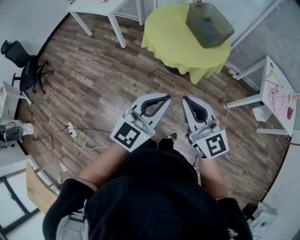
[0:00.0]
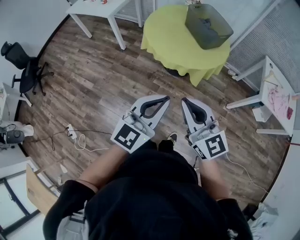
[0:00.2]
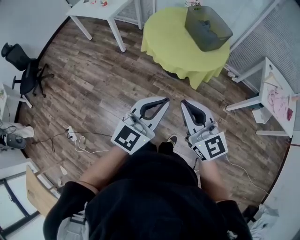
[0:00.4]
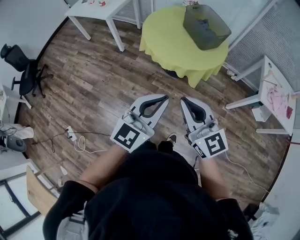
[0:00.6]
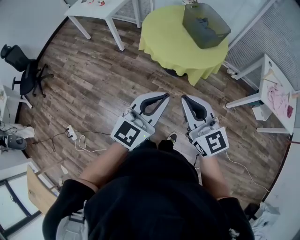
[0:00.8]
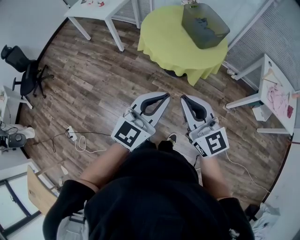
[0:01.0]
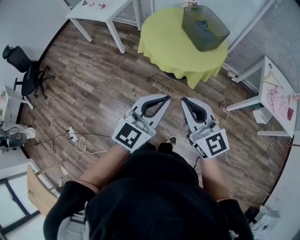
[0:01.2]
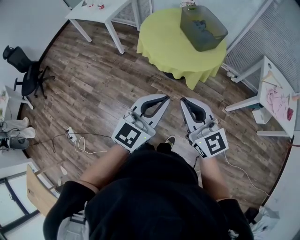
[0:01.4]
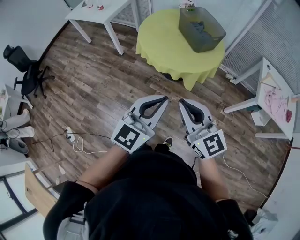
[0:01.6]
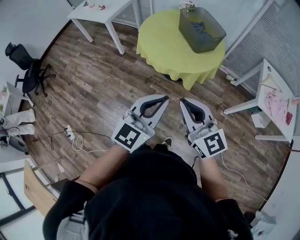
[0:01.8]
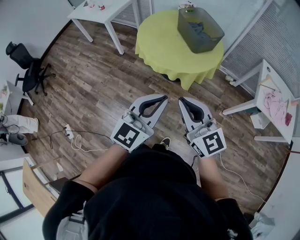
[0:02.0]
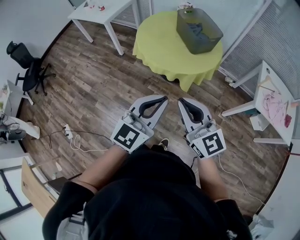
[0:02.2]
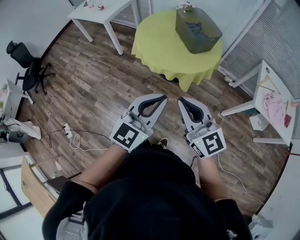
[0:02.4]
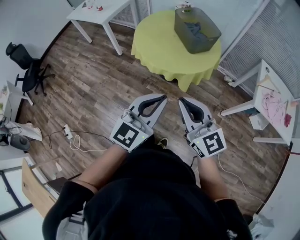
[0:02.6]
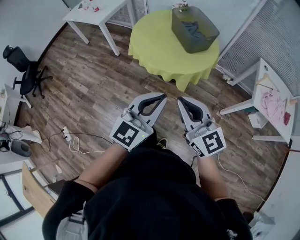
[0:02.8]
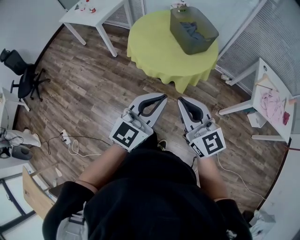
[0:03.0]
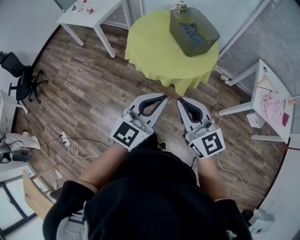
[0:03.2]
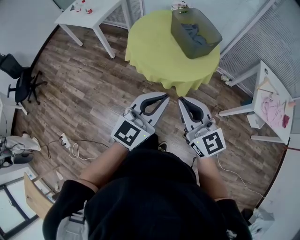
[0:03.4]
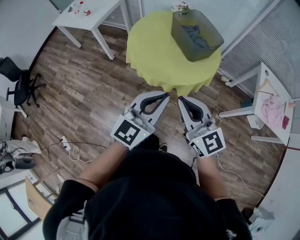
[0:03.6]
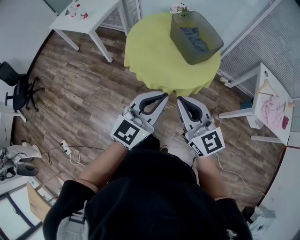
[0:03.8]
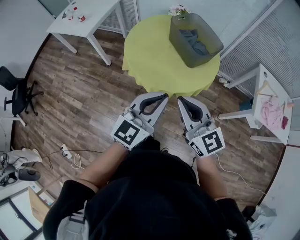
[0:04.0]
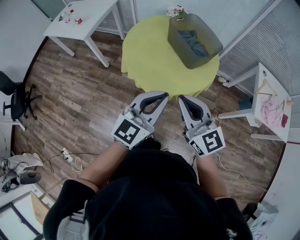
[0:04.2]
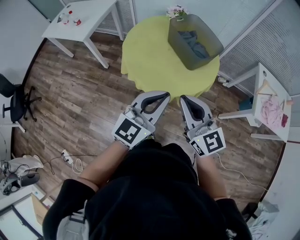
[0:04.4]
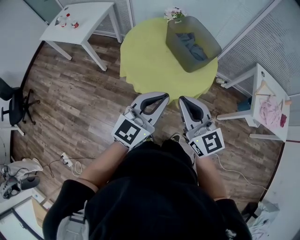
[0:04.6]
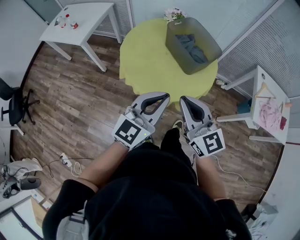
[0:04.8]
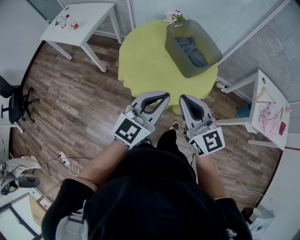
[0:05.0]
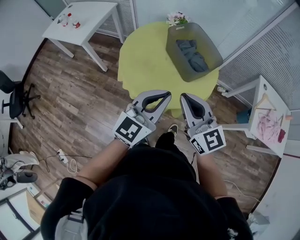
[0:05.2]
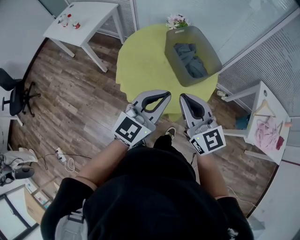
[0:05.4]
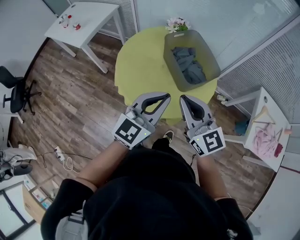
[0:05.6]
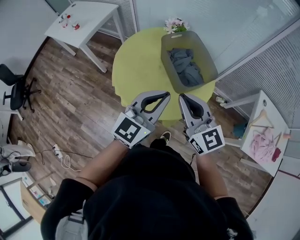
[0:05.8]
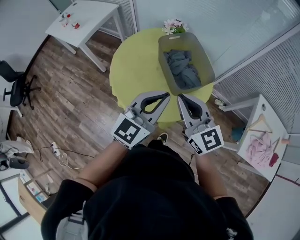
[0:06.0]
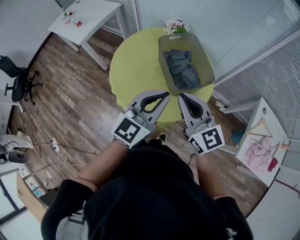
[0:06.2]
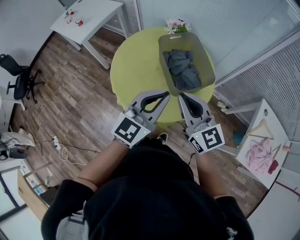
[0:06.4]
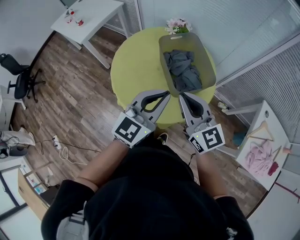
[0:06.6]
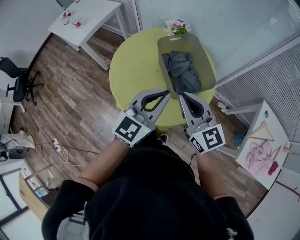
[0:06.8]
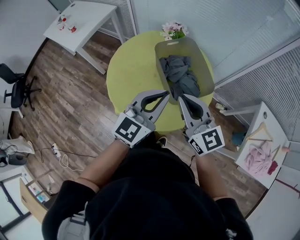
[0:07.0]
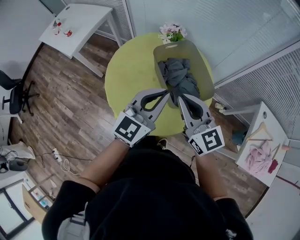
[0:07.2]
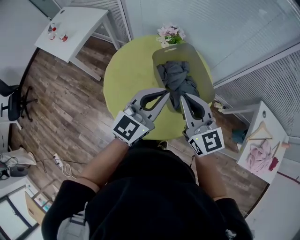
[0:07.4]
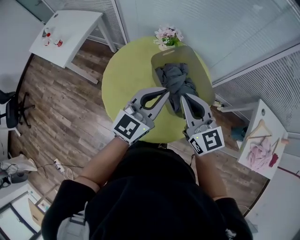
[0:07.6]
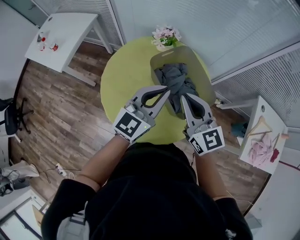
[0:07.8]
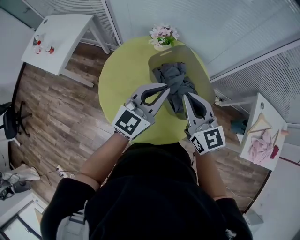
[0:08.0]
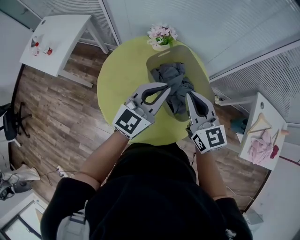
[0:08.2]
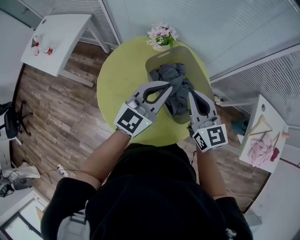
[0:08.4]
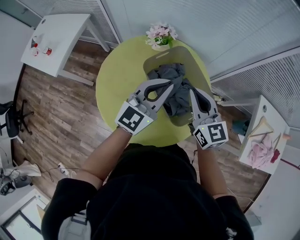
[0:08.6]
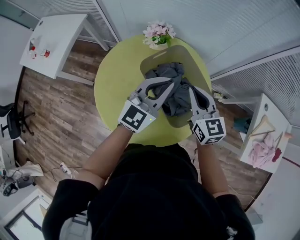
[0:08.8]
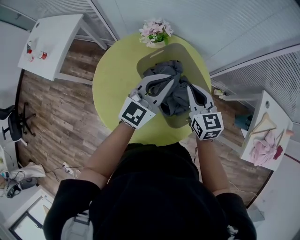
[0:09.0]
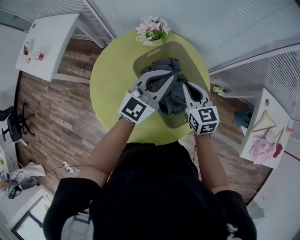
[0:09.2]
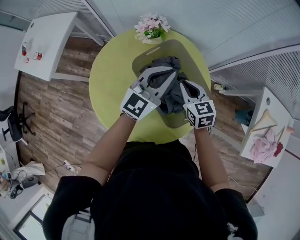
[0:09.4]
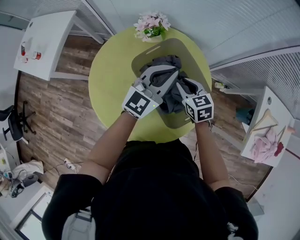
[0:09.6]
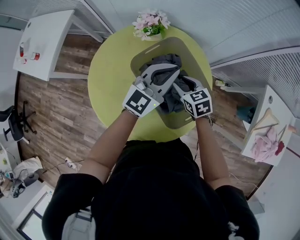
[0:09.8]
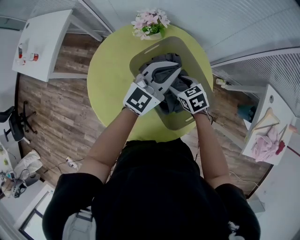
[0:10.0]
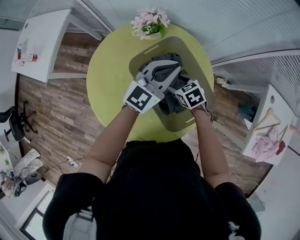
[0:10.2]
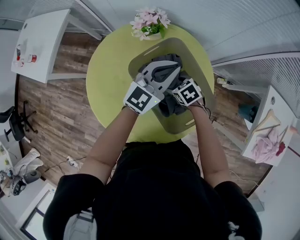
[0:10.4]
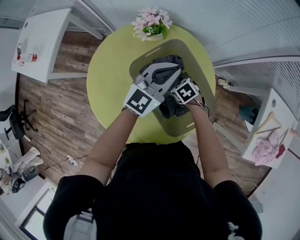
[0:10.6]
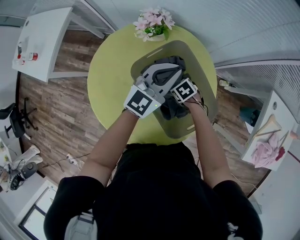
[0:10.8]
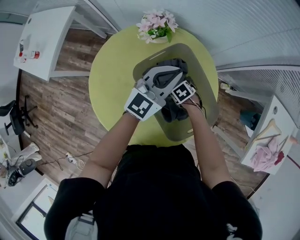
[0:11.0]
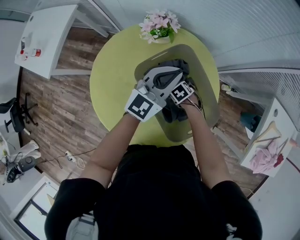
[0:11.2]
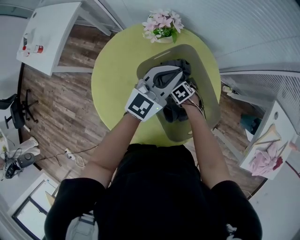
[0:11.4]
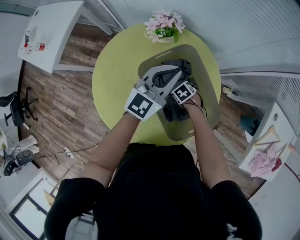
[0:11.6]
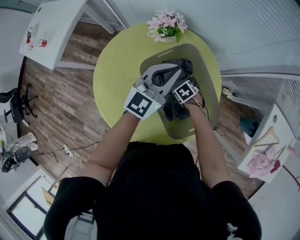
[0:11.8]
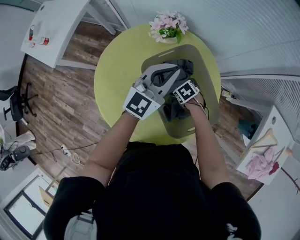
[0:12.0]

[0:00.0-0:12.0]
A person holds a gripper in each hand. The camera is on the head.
0:00.0 to 0:01.6: Both grippers travel together to the right, approximately 5 cm.
0:01.6 to 0:03.0: The grippers both shift to the right and forward by about 10 cm.
0:03.0 to 0:04.4: The two grippers go roughly 20 cm forward.
0:04.4 to 0:06.0: The two grippers go approximately 25 cm forward and to the right.
0:06.0 to 0:07.6: The grippers both shift forward by about 15 cm.
0:07.6 to 0:09.0: The left gripper heads forward and downward, covering roughly 15 cm; the right gripper heads forward, downward and to the right, covering some 20 cm, and turns by roughly 20 degrees.
0:09.0 to 0:10.4: The left gripper travels forward and downward by approximately 10 cm. The right gripper heads downward, covering some 25 cm, angles its fingers downward, by some 40 degrees, and opens its fingers.
0:10.4 to 0:12.0: The right gripper travels downward by roughly 5 cm. Meanwhile the left gripper ends up approximately 5 cm from where it was.

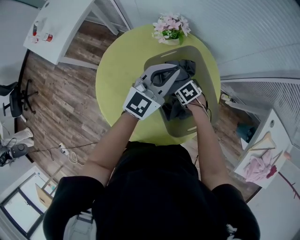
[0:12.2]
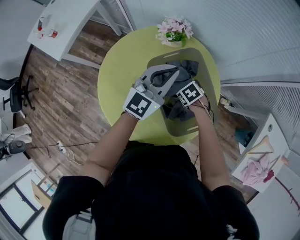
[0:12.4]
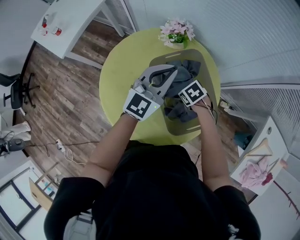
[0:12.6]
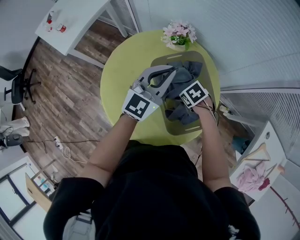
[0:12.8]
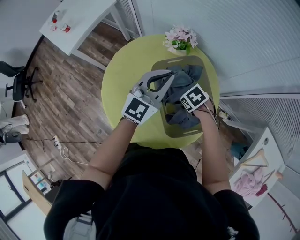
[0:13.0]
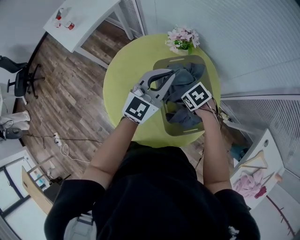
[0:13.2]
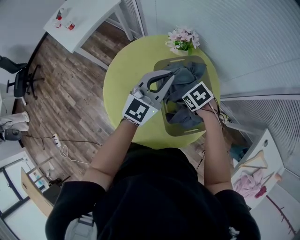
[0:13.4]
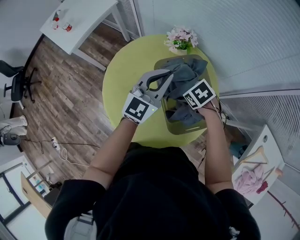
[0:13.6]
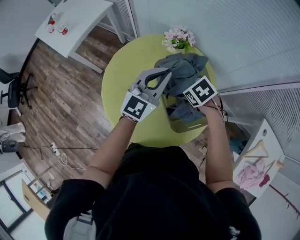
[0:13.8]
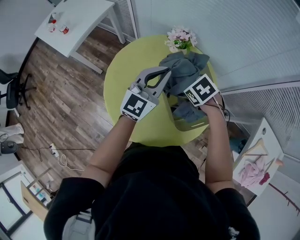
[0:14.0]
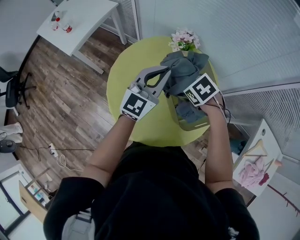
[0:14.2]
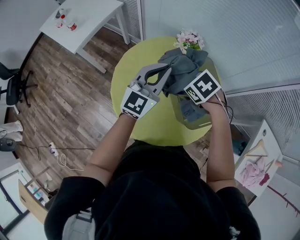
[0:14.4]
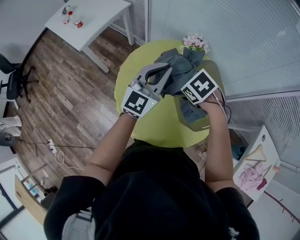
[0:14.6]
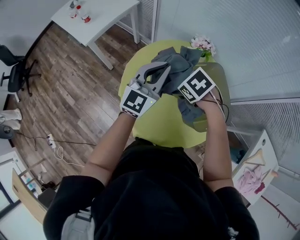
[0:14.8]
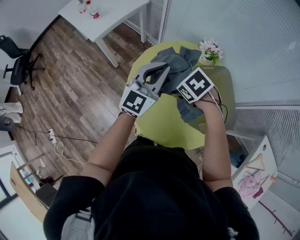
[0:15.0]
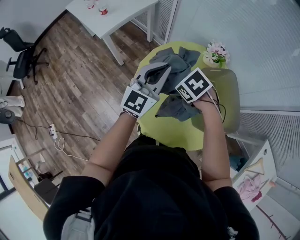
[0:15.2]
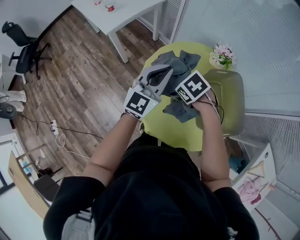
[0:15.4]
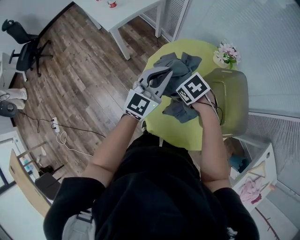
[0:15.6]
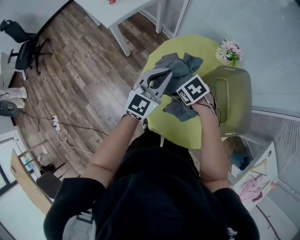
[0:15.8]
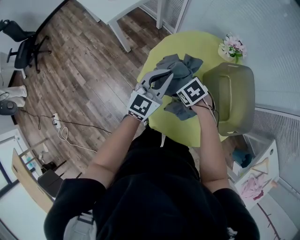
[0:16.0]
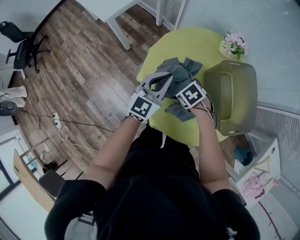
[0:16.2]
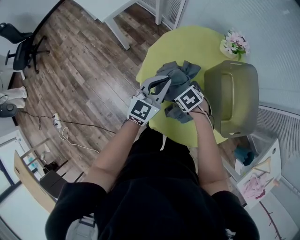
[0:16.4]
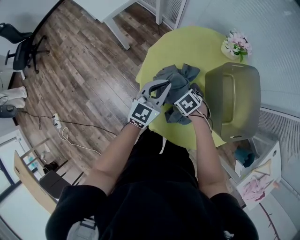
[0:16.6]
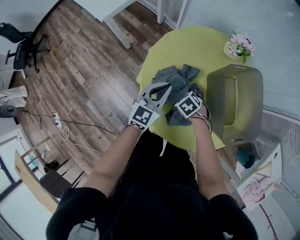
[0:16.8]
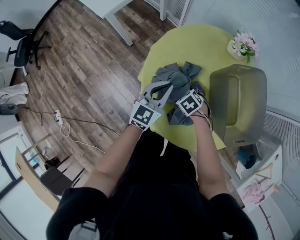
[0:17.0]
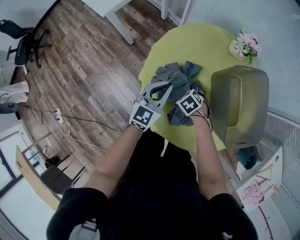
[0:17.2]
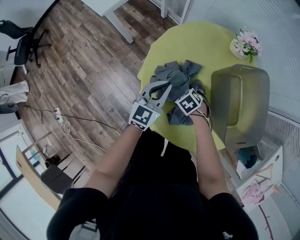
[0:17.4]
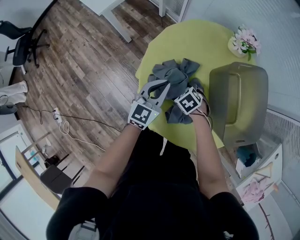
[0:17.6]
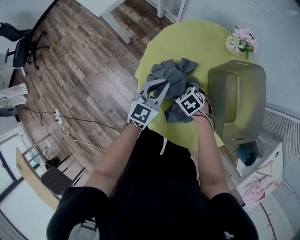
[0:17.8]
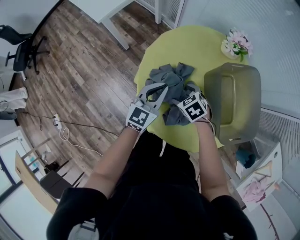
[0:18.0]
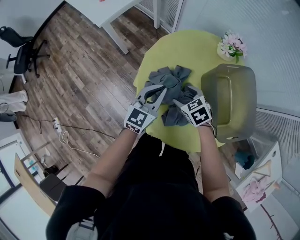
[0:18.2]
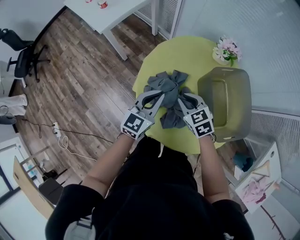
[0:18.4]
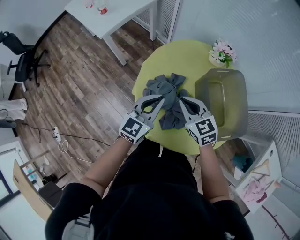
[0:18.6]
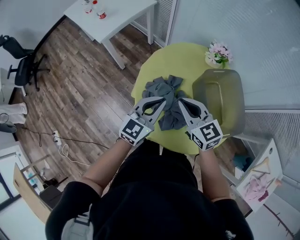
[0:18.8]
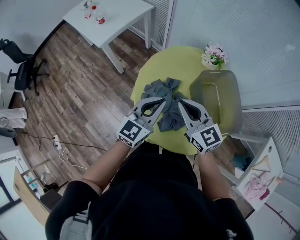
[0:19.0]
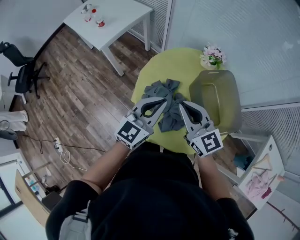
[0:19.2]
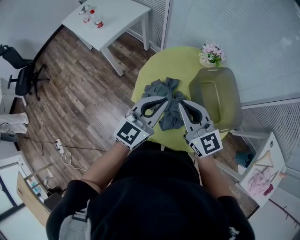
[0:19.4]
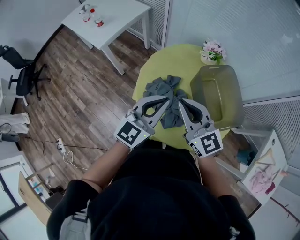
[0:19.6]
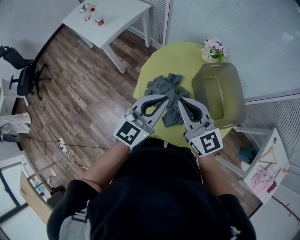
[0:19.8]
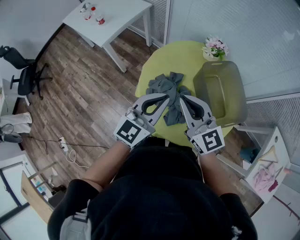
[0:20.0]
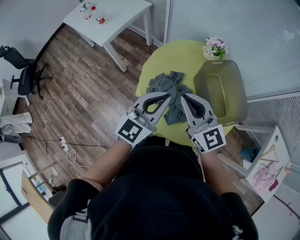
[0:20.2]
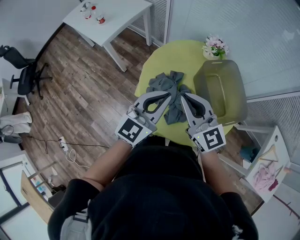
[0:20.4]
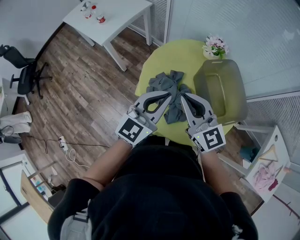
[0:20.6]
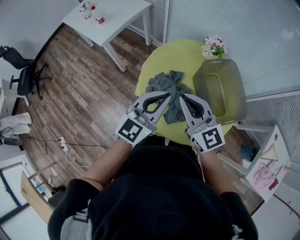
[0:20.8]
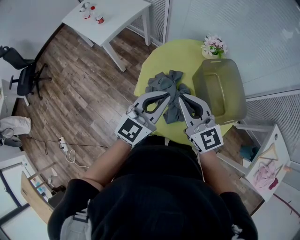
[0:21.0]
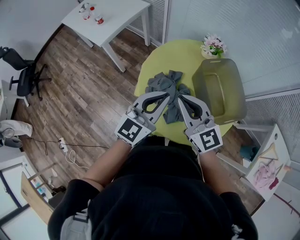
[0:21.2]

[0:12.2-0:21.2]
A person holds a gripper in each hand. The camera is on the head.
0:12.2 to 0:13.8: The right gripper goes about 20 cm upward; the left gripper heads to the left, covering about 10 cm.
0:13.8 to 0:15.2: The grippers both shift to the left by some 25 cm.
0:15.2 to 0:16.6: Both grippers move downward, some 20 cm.
0:16.6 to 0:18.2: The right gripper travels upward by roughly 10 cm, and turns by about 20 degrees.
0:18.2 to 0:19.8: The left gripper travels upward and backward by approximately 20 cm; the right gripper shifts roughly 30 cm upward, tilts its fingers some 50 degrees upward, and closes its fingers.
0:19.8 to 0:21.2: The two grippers keep their place.

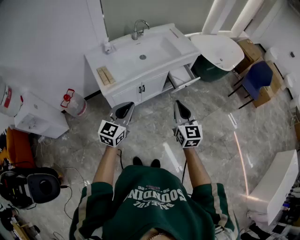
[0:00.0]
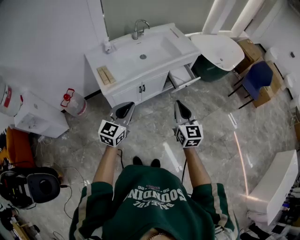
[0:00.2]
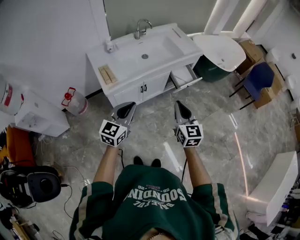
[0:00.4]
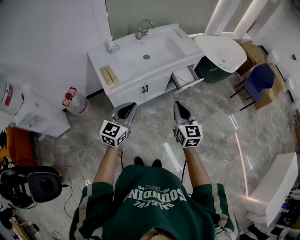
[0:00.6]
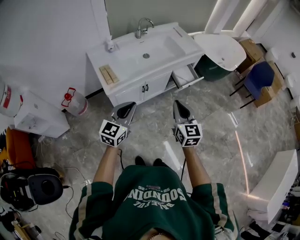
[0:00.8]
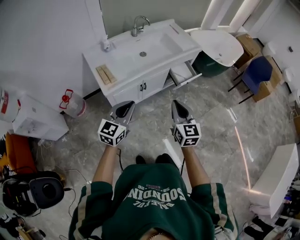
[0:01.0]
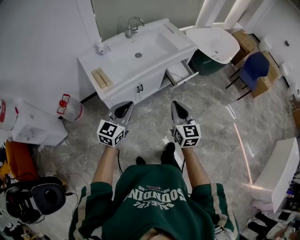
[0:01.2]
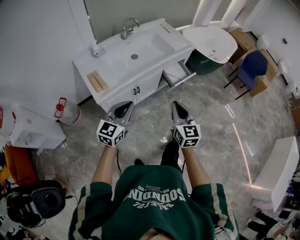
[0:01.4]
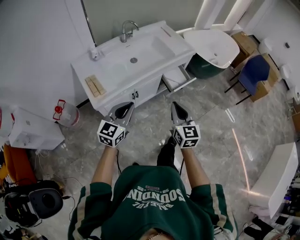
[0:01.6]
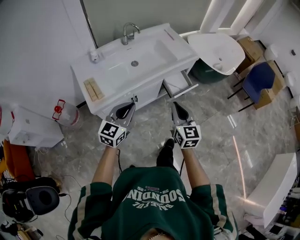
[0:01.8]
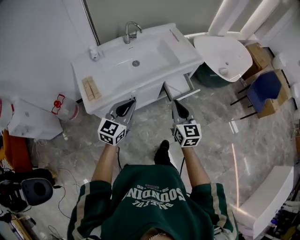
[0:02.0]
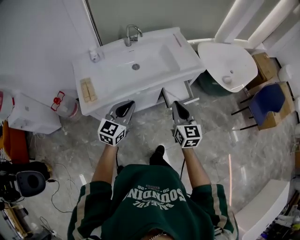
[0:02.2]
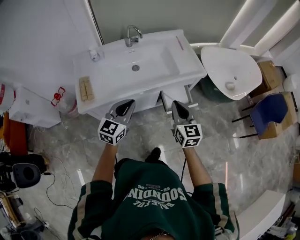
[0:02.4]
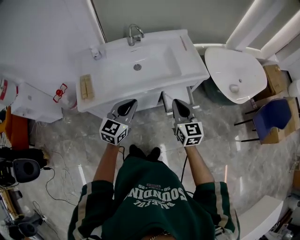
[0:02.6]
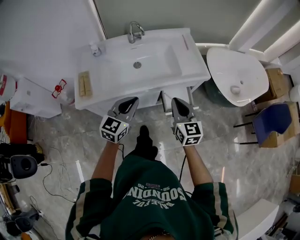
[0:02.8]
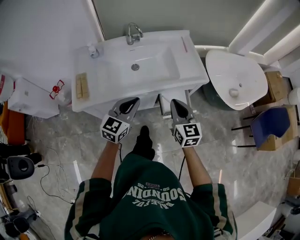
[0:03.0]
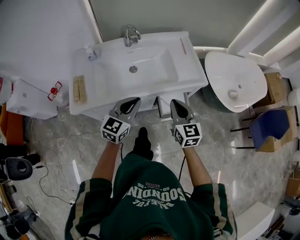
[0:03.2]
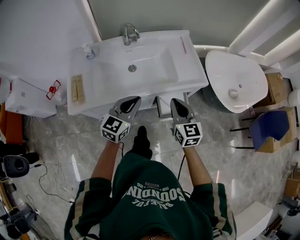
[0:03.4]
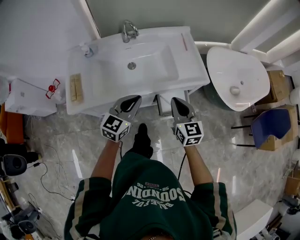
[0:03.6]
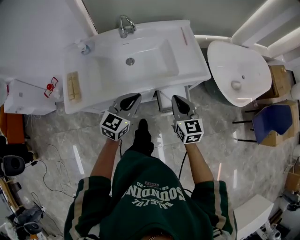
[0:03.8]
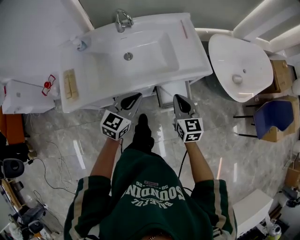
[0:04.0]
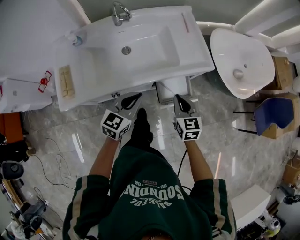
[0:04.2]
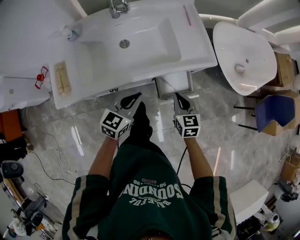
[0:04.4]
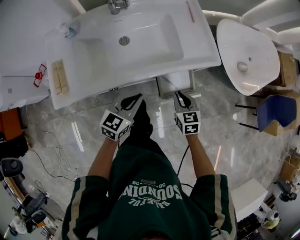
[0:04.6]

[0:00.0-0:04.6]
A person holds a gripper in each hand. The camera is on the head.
0:00.0 to 0:01.6: The two grippers go about 10 cm forward.
0:01.6 to 0:03.0: The two grippers go some 30 cm forward and to the right. The right gripper rotates some 20 degrees.
0:03.0 to 0:04.6: The right gripper travels downward by about 20 cm, and turns by roughly 30 degrees. Meanwhile the left gripper is displaced downward and forward by about 15 cm.
